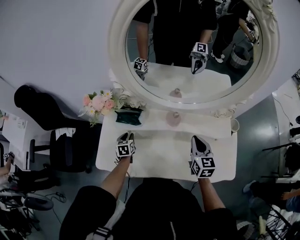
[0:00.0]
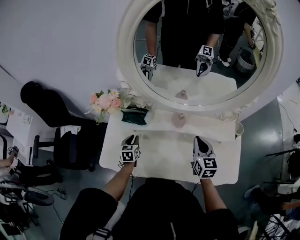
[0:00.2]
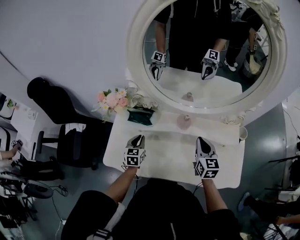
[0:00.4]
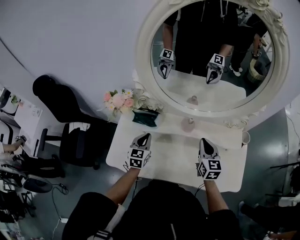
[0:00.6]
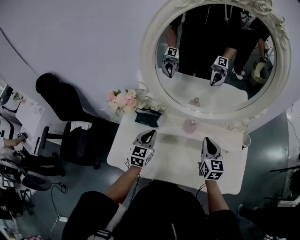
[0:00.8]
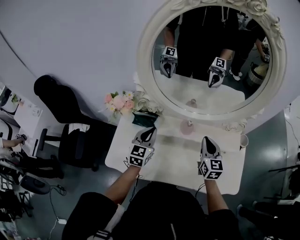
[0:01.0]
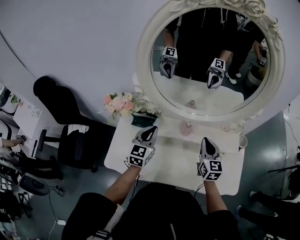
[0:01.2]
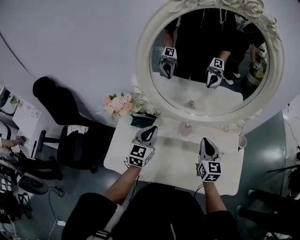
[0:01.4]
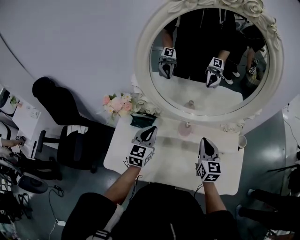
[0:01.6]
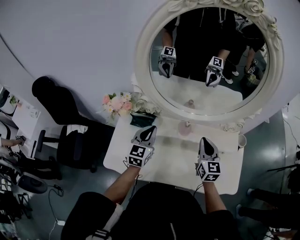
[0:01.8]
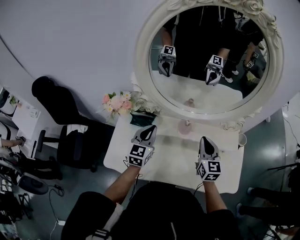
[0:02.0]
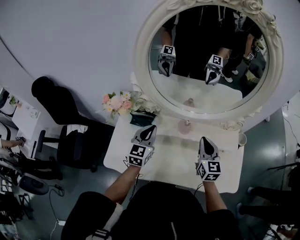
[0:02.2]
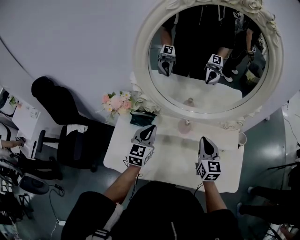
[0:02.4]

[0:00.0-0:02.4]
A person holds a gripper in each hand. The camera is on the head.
0:00.0 to 0:01.2: The right gripper changes place by some 5 cm. Meanwhile the left gripper is displaced upward and to the right by some 25 cm, tips its fingers upward by some 30 degrees, and closes.
0:01.2 to 0:02.4: Both grippers stay about where they are.

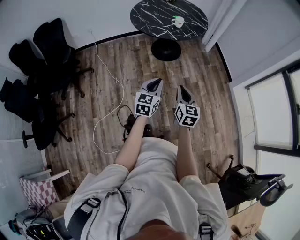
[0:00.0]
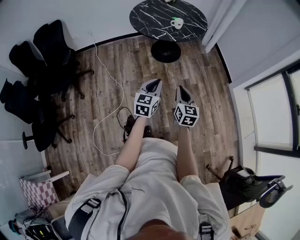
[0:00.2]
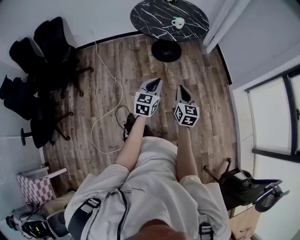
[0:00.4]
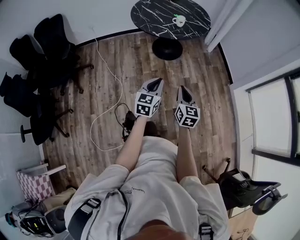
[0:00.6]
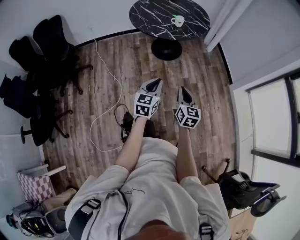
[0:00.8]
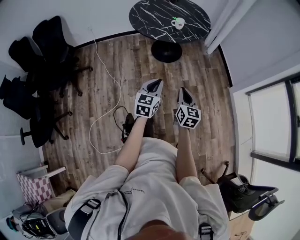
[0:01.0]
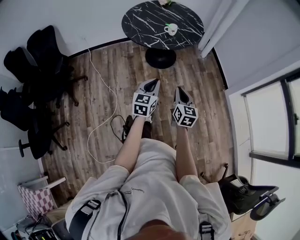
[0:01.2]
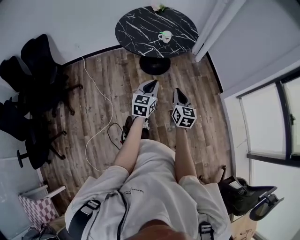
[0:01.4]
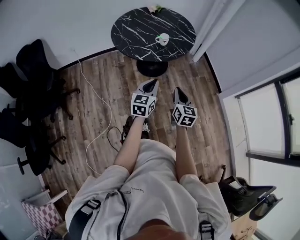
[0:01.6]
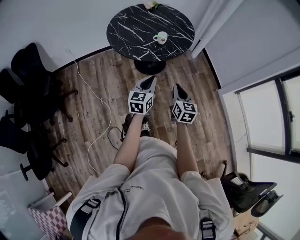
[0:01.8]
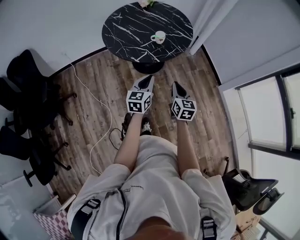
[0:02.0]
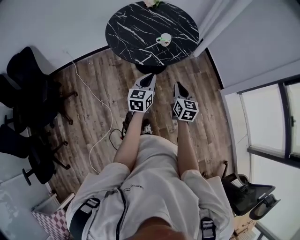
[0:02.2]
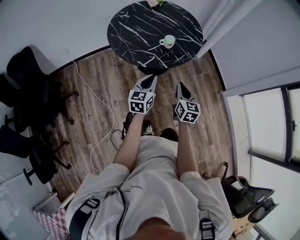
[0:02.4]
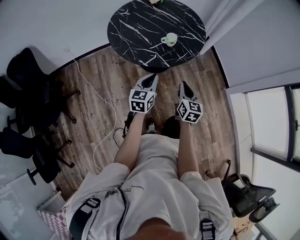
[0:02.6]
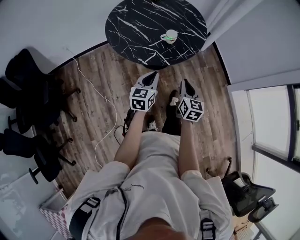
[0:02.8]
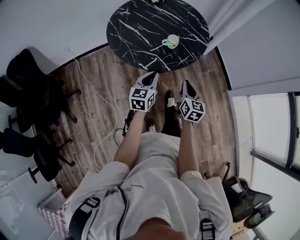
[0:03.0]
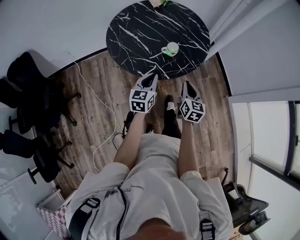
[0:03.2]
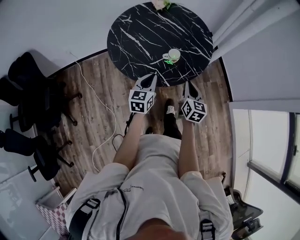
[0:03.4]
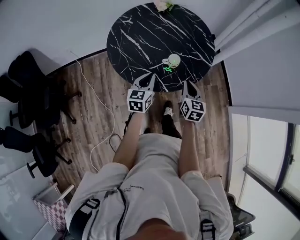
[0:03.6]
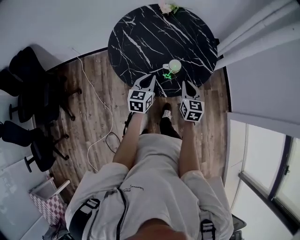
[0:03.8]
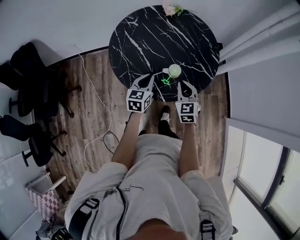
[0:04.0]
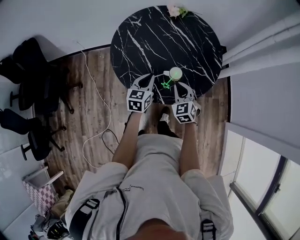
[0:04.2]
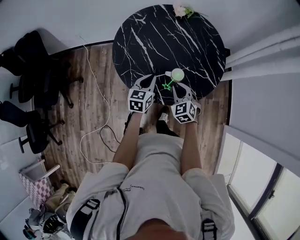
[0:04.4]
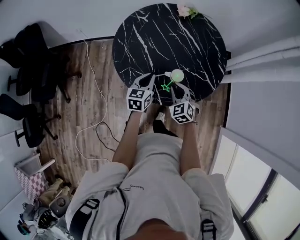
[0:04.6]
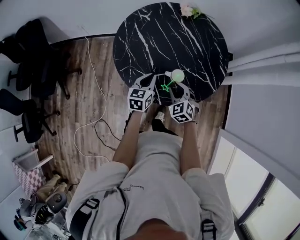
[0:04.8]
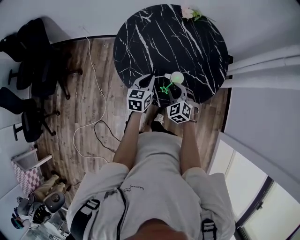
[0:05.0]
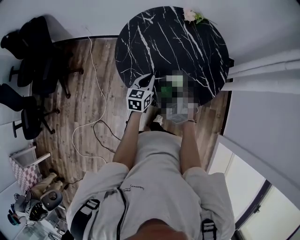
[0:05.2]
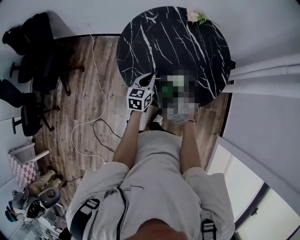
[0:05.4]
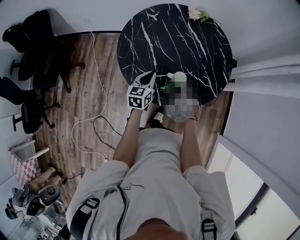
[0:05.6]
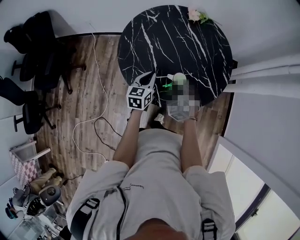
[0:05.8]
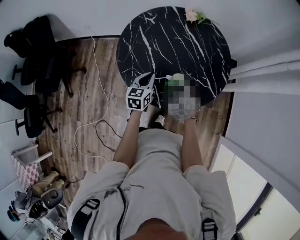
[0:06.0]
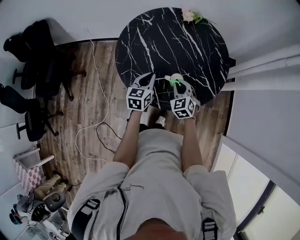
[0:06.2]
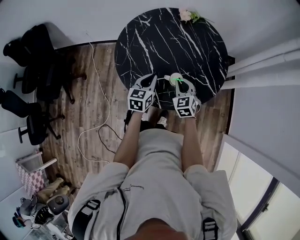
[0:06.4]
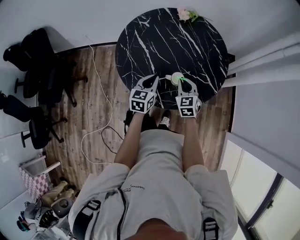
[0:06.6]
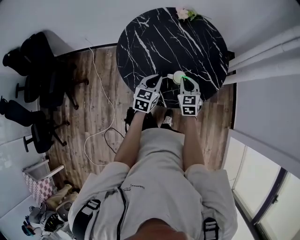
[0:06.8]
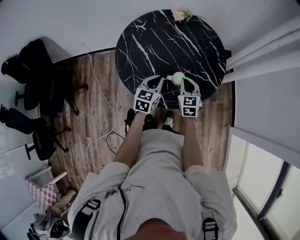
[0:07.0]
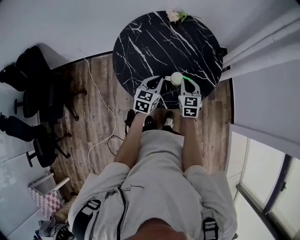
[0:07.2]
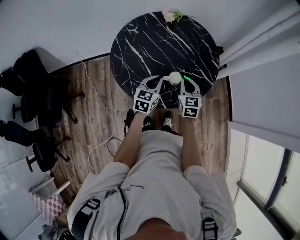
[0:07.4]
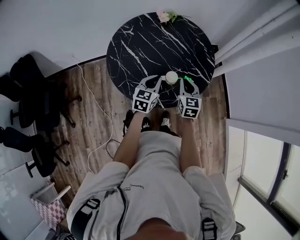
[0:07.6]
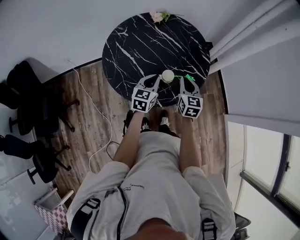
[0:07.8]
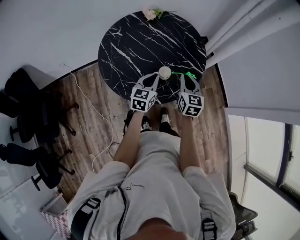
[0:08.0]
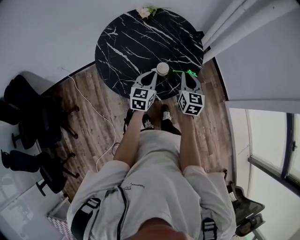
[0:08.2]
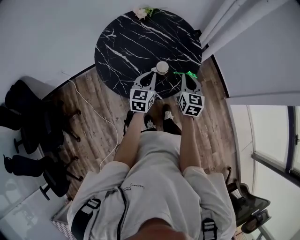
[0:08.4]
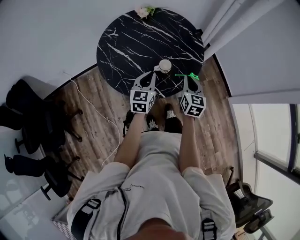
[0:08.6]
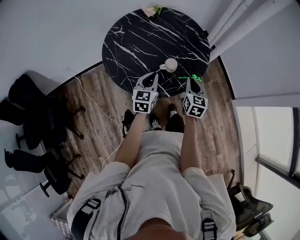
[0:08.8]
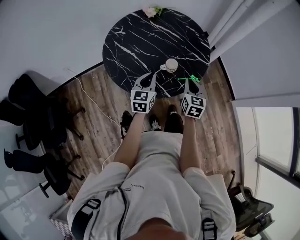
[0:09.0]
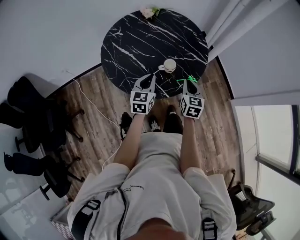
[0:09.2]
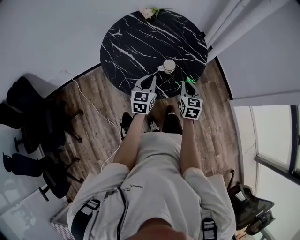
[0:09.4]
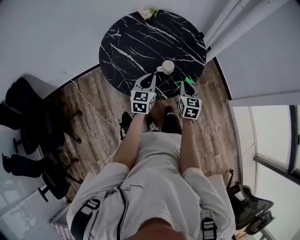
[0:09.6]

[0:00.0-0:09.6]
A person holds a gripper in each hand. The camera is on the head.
0:00.0 to 0:01.6: The two grippers go approximately 25 cm forward.
0:01.6 to 0:03.2: The grippers both shift forward by about 30 cm.
0:03.2 to 0:04.8: The right gripper shifts by about 25 cm, and rolls counterclockwise, seen from behind, by some 60 degrees; the left gripper moves roughly 20 cm, and turns by approximately 20 degrees.
0:04.8 to 0:06.4: The right gripper changes place by about 5 cm.
0:06.4 to 0:08.0: The right gripper moves upward, about 10 cm, and changes its angle by some 50 degrees; the left gripper changes place by roughly 5 cm, and turns by about 20 degrees.
0:08.0 to 0:09.6: The right gripper moves backward and downward, approximately 10 cm, while the left gripper shifts by roughly 5 cm.

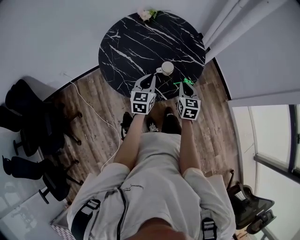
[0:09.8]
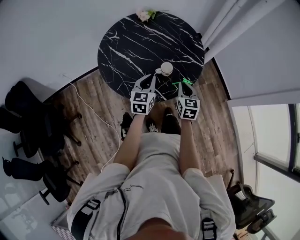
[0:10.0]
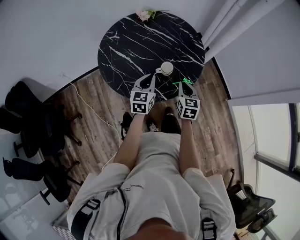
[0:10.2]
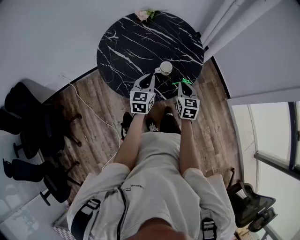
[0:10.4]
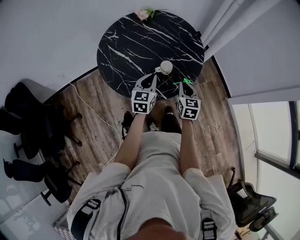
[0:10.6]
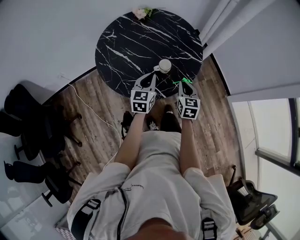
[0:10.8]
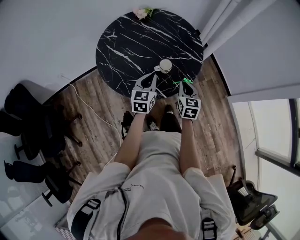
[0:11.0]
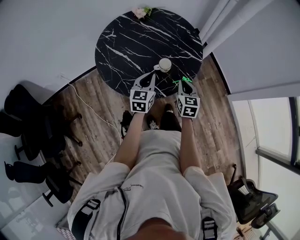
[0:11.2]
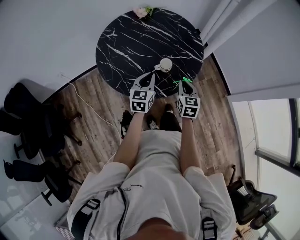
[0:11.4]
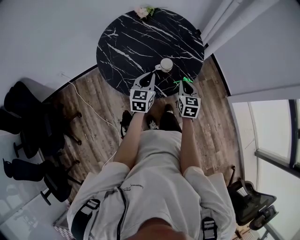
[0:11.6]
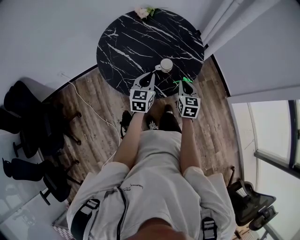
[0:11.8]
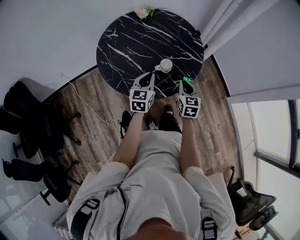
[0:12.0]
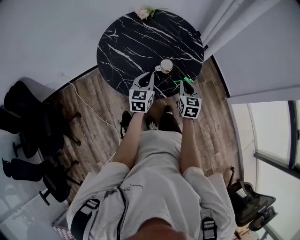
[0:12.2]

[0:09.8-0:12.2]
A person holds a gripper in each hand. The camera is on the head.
0:09.8 to 0:11.0: Both grippers stay about where they are.
0:11.0 to 0:12.2: The grippers stay close to where they were, moving slightly.

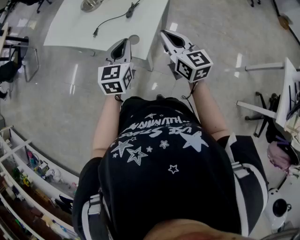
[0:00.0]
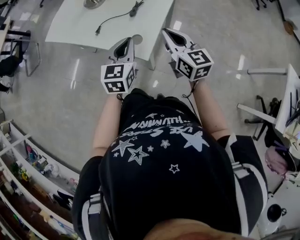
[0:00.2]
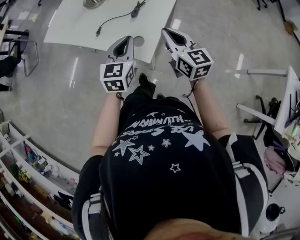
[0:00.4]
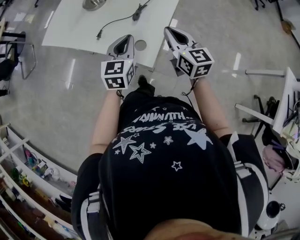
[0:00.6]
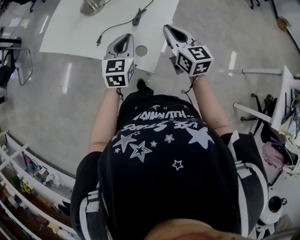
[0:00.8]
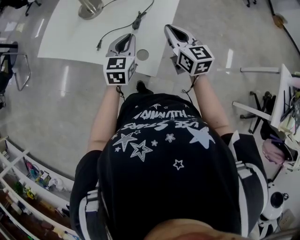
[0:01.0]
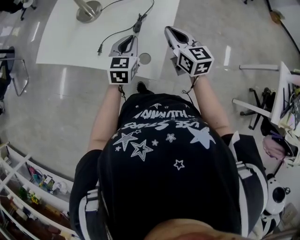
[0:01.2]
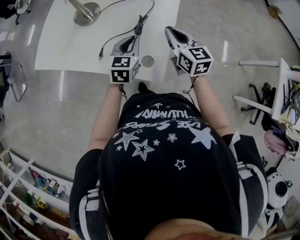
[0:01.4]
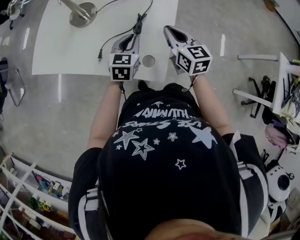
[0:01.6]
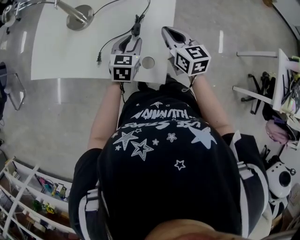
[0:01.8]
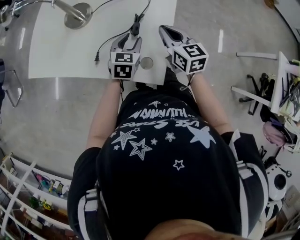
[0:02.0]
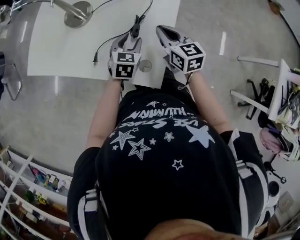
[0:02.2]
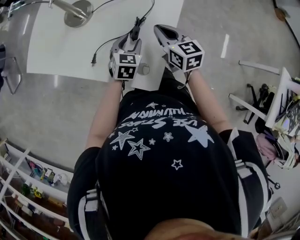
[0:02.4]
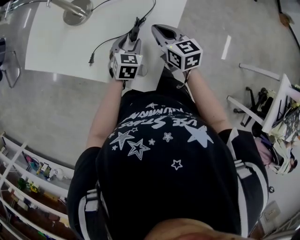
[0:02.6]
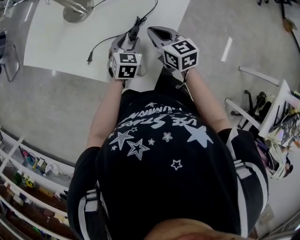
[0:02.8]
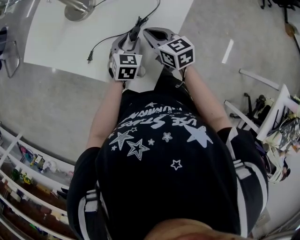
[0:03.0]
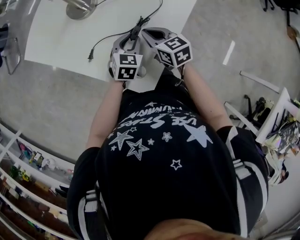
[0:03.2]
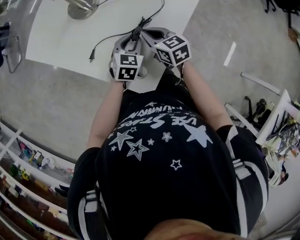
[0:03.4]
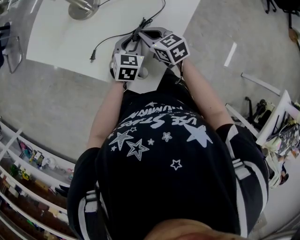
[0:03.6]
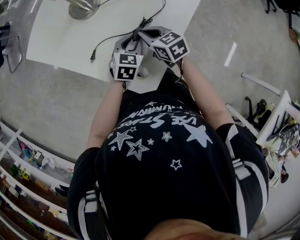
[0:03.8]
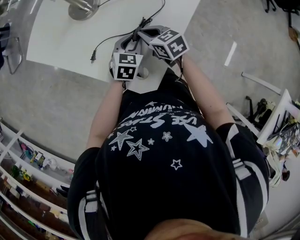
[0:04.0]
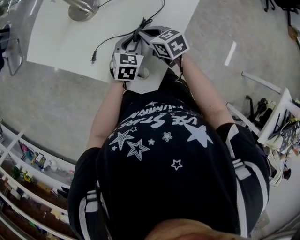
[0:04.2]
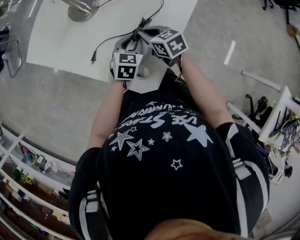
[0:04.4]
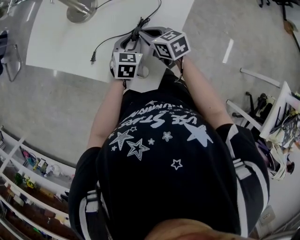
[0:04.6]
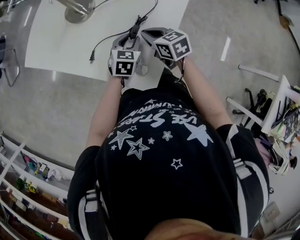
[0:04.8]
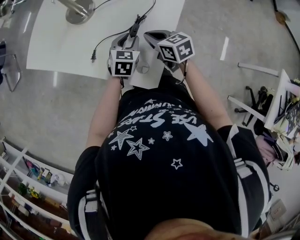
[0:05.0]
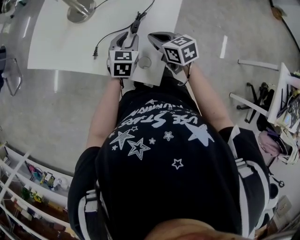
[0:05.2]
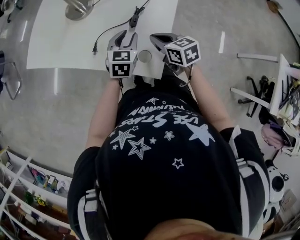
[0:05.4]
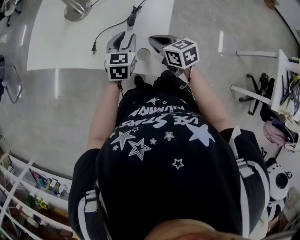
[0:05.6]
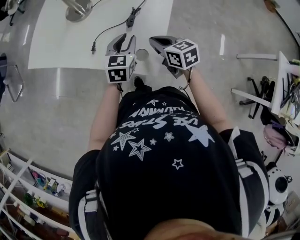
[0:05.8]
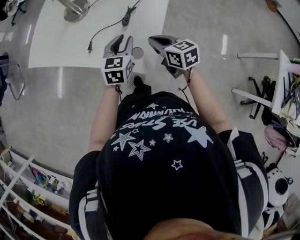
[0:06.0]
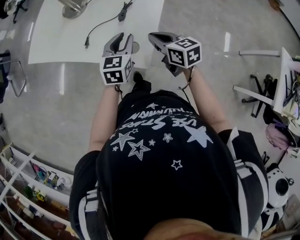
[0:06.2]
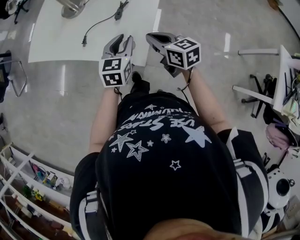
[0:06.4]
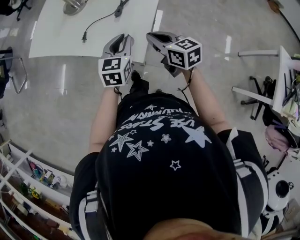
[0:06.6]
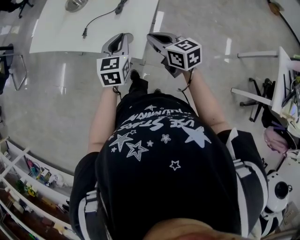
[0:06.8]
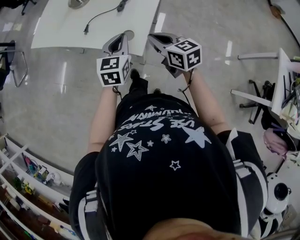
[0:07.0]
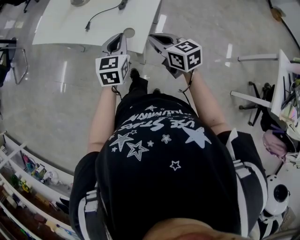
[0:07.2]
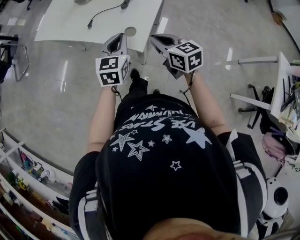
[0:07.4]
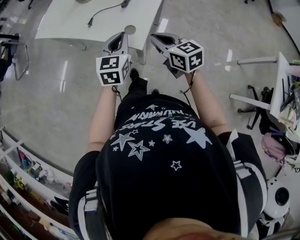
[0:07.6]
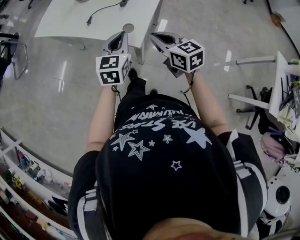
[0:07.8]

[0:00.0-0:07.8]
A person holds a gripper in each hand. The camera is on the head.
0:00.0 to 0:01.6: The left gripper is displaced forward and downward by approximately 20 cm. Meanwhile the right gripper is displaced forward by about 20 cm.
0:01.6 to 0:03.2: Both grippers travel together downward, roughly 10 cm. The right gripper swivels about 30 degrees; the left gripper opens its fingers.
0:03.2 to 0:04.6: The grippers make only small movements.
0:04.6 to 0:06.2: The left gripper heads backward and upward, covering approximately 15 cm; the right gripper goes about 15 cm backward.
0:06.2 to 0:07.8: Both grippers move backward, about 15 cm. The left gripper closes.

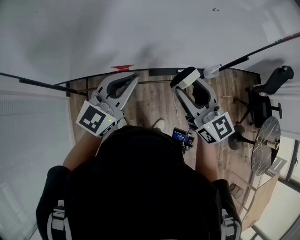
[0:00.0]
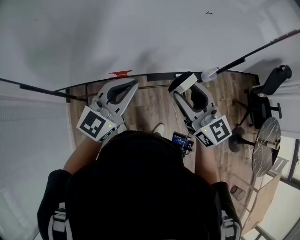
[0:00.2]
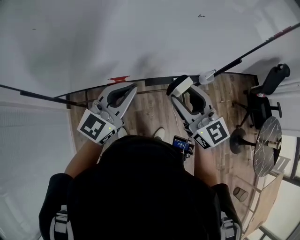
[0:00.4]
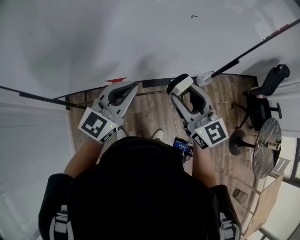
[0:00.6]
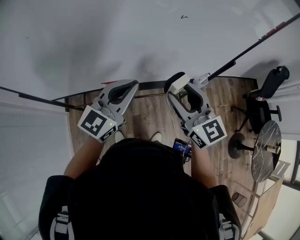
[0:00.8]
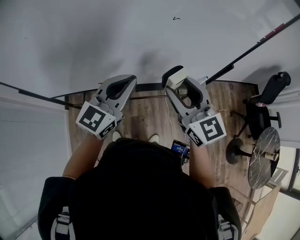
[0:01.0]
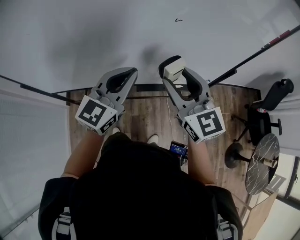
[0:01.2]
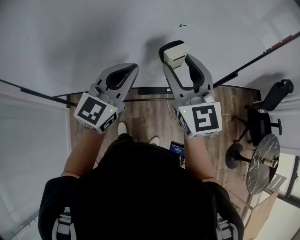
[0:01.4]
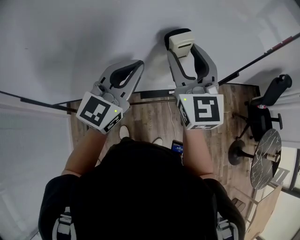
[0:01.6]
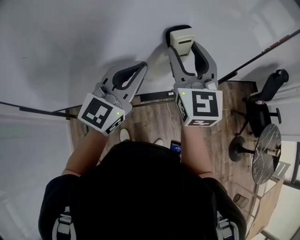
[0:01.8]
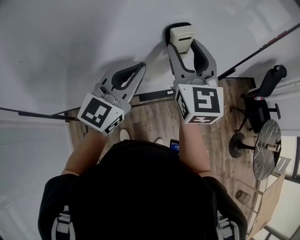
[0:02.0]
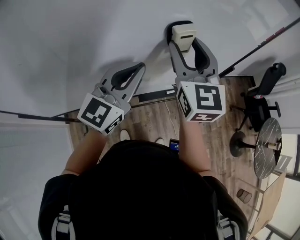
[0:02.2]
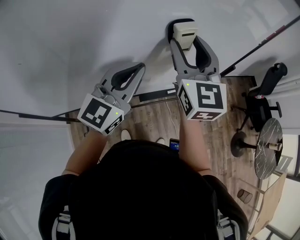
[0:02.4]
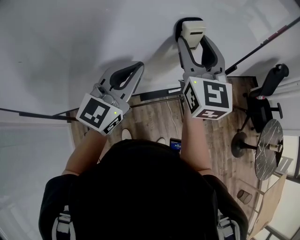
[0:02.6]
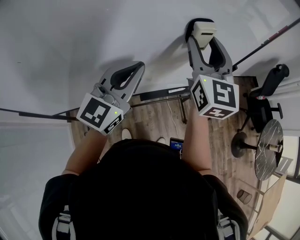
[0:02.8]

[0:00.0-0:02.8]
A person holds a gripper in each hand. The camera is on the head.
0:00.0 to 0:01.4: The right gripper goes roughly 15 cm forward and upward, and swivels approximately 20 degrees; the left gripper shifts approximately 10 cm forward, to the right and upward.
0:01.4 to 0:02.8: The right gripper travels forward by about 10 cm, and swivels roughly 20 degrees.
